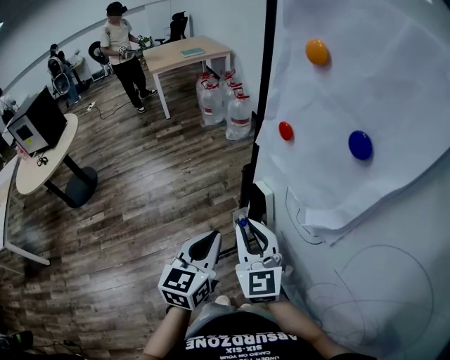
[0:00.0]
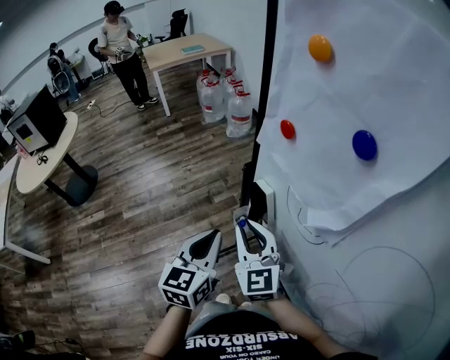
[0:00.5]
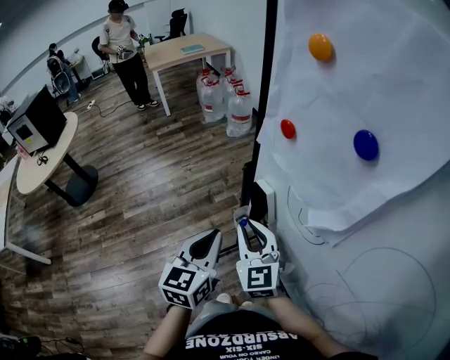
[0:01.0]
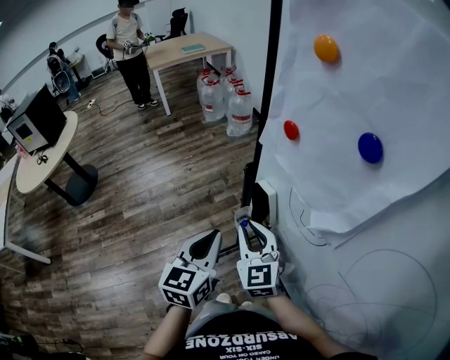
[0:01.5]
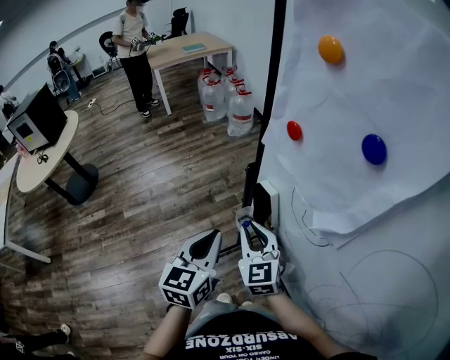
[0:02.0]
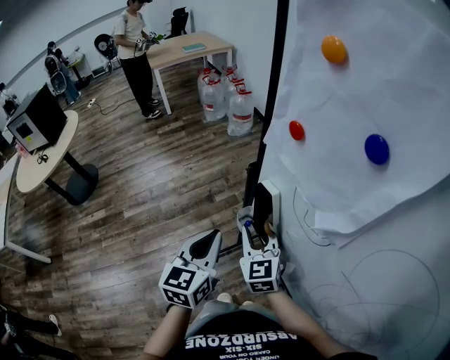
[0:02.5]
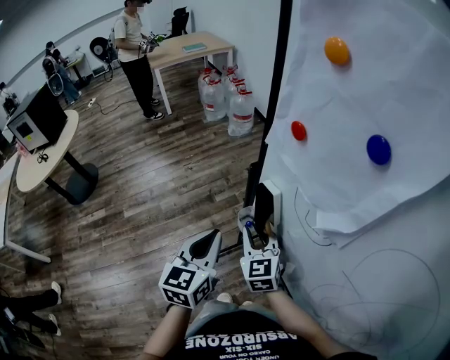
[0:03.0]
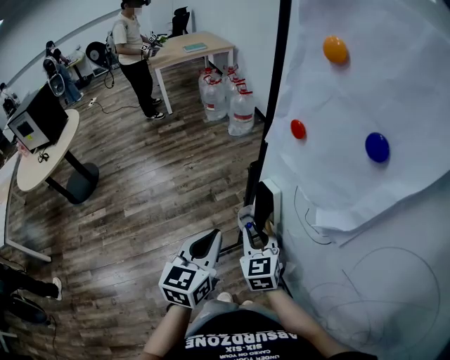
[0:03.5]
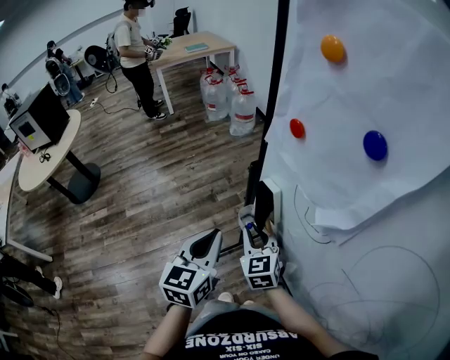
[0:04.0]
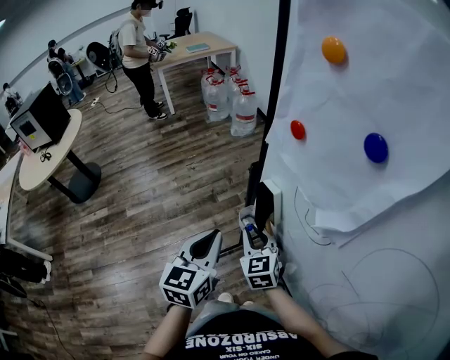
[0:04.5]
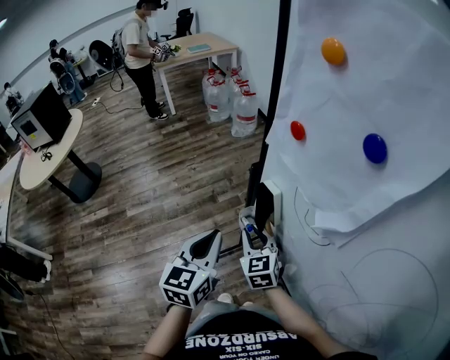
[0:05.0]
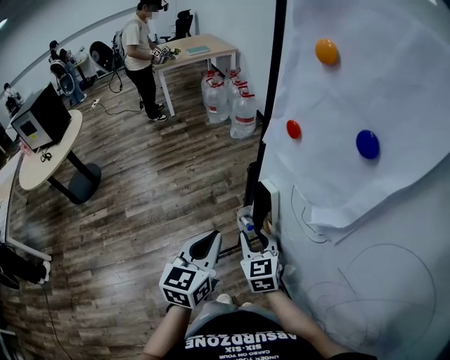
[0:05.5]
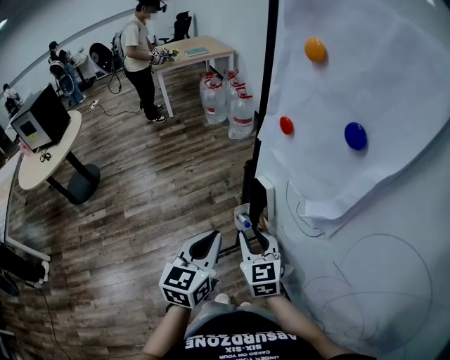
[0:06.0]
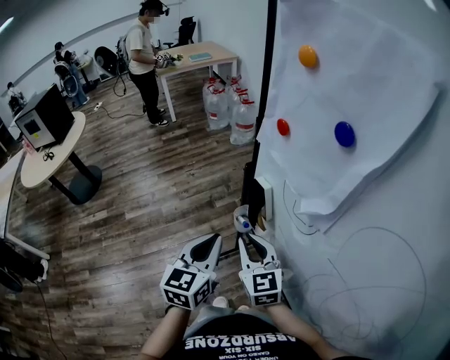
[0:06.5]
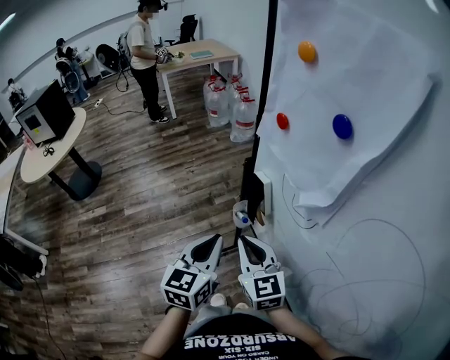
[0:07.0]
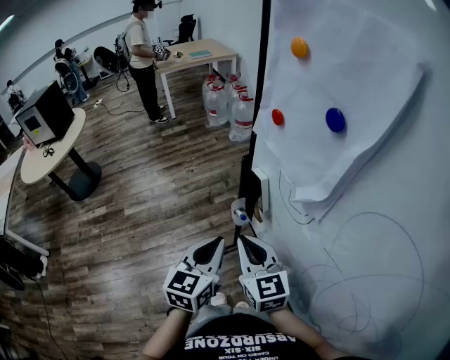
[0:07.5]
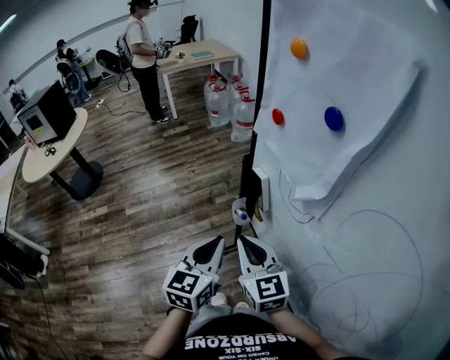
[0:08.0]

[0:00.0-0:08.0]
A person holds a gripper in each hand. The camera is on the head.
0:00.0 to 0:02.0: The right gripper heads downward, covering approximately 10 cm.
0:02.0 to 0:06.0: The grippers make only small movements.
0:06.0 to 0:08.0: The right gripper heads backward and upward, covering approximately 10 cm, and closes its fingers; the left gripper shifts by approximately 5 cm.

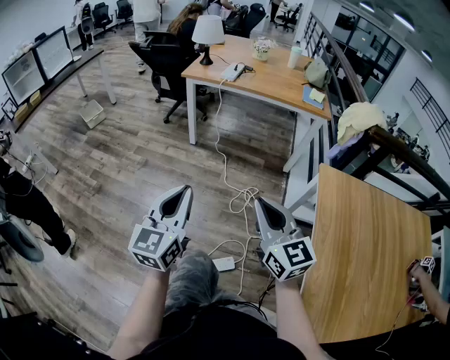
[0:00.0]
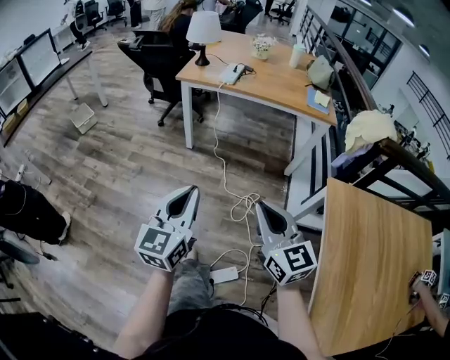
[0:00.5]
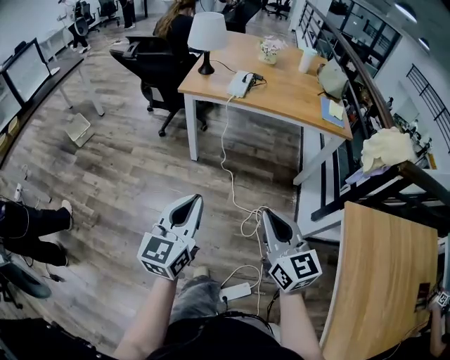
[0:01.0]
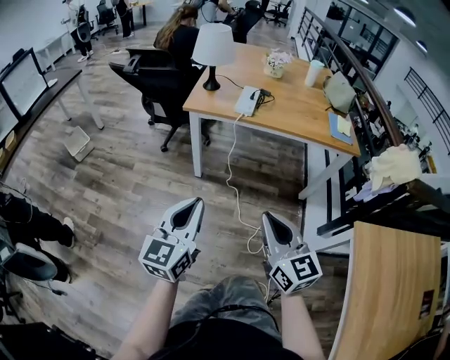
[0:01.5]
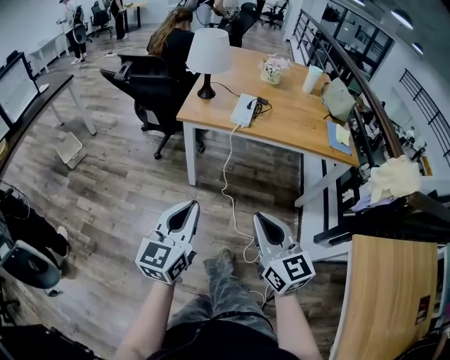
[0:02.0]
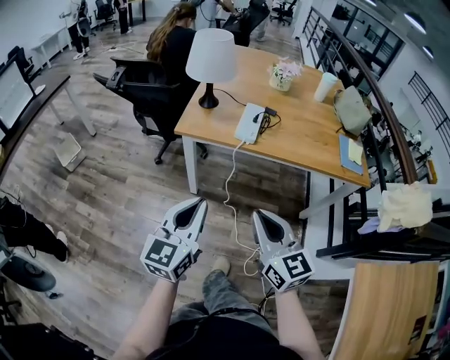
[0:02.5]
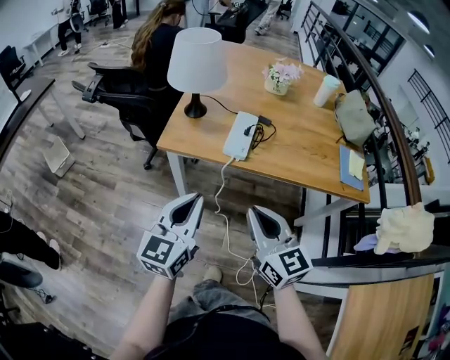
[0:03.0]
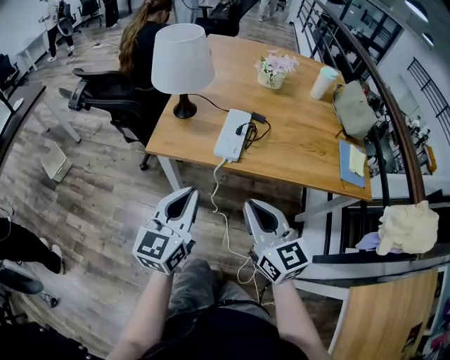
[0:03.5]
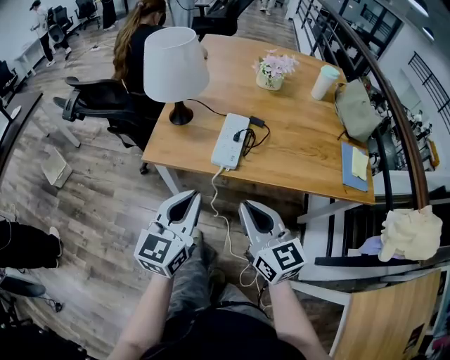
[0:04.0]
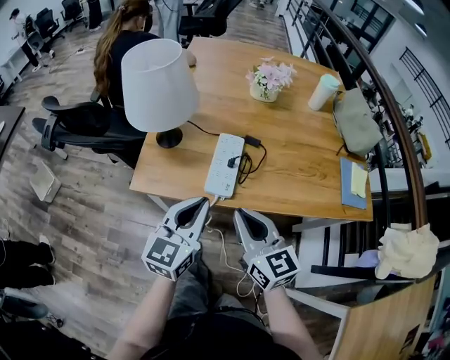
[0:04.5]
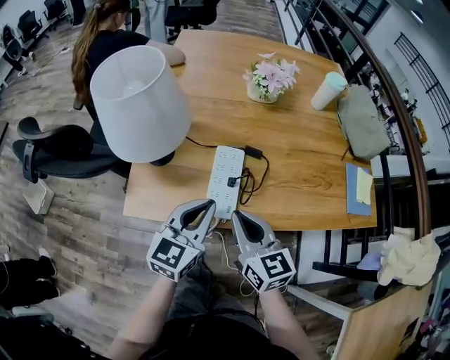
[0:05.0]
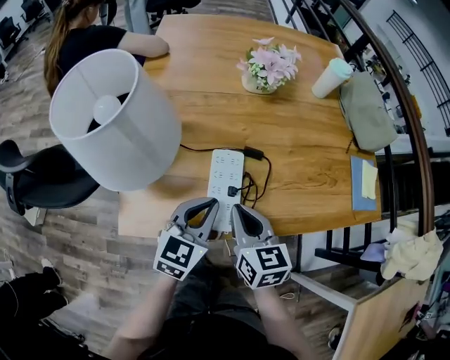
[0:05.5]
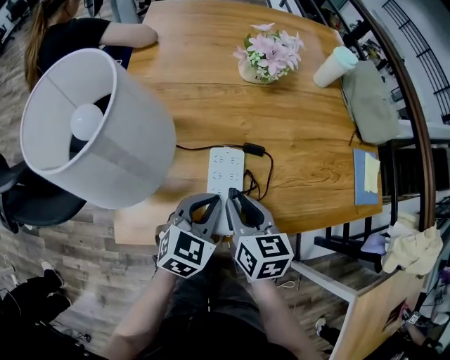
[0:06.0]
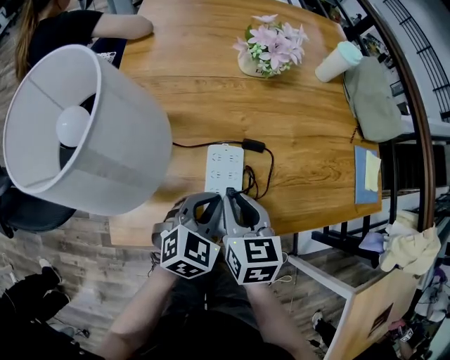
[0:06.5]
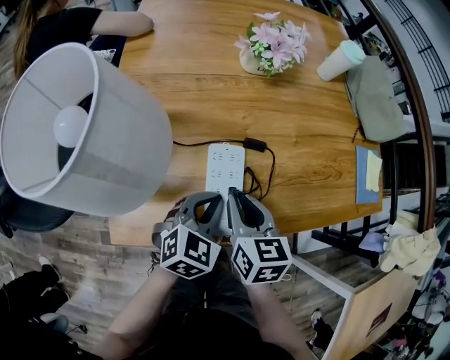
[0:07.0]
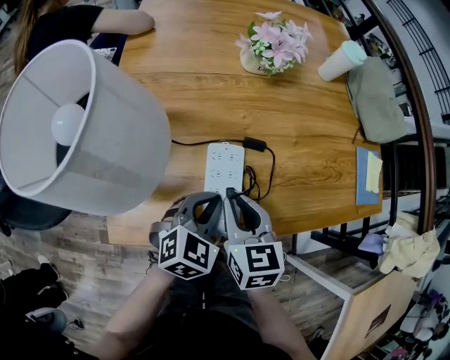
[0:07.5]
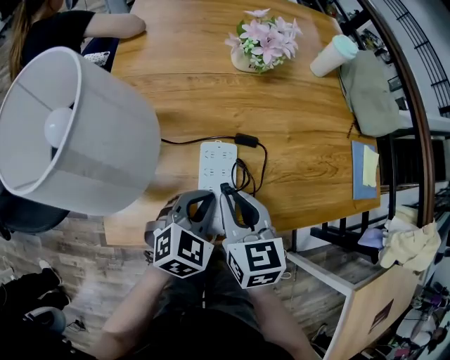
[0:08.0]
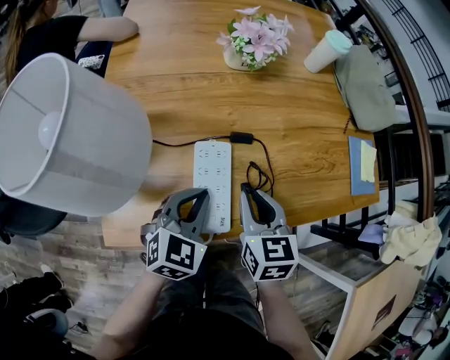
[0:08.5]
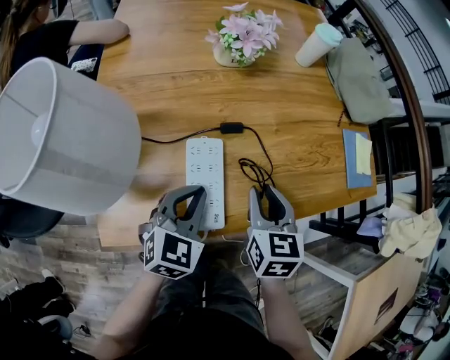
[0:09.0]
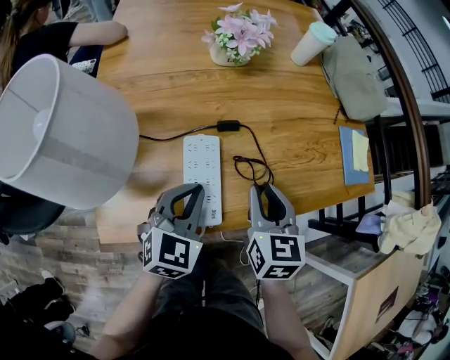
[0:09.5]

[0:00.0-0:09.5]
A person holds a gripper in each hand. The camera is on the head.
0:00.0 to 0:02.0: The grippers both shift forward by approximately 40 cm.
0:02.0 to 0:04.0: The grippers both shift forward by roughly 30 cm.
0:04.0 to 0:05.5: Both grippers move forward and downward, about 25 cm. The right gripper swivels roughly 30 degrees; the left gripper turns by roughly 30 degrees.
0:05.5 to 0:07.5: The left gripper ends up roughly 5 cm from where it was, and rotates about 20 degrees.
0:07.5 to 0:09.5: The right gripper heads to the right, covering approximately 10 cm.

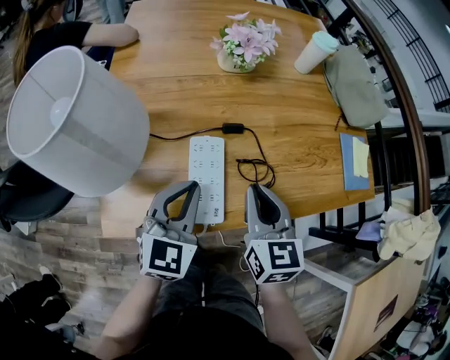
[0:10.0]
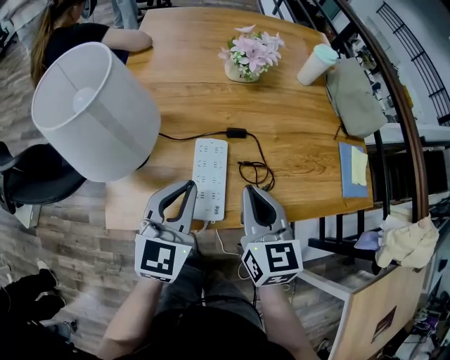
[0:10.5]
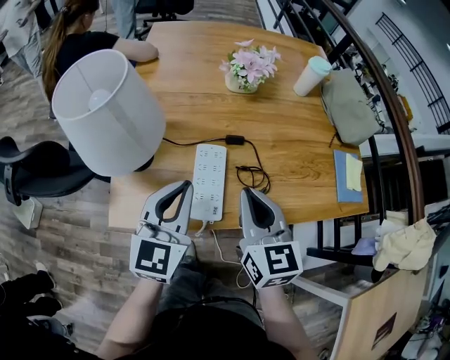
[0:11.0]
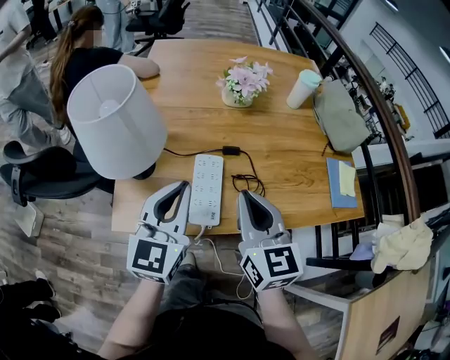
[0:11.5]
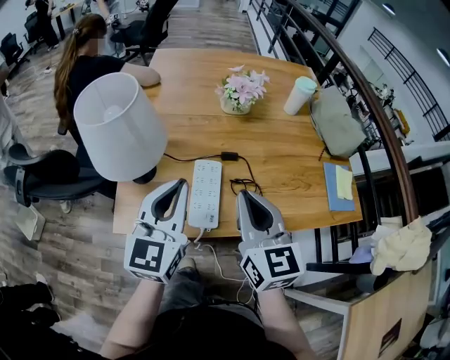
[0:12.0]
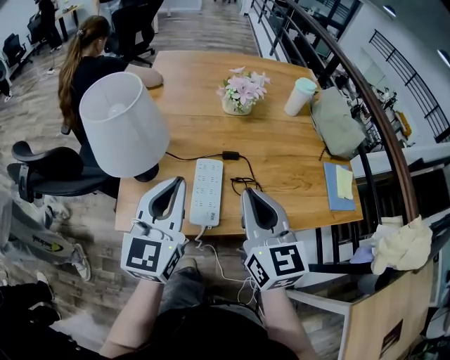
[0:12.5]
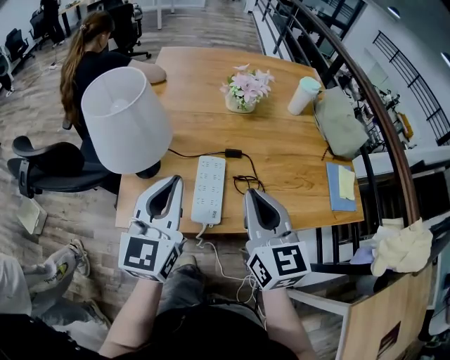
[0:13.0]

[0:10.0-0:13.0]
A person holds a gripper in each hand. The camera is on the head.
0:10.0 to 0:11.5: Both grippers move upward, about 10 cm. The left gripper swivels about 20 degrees.
0:11.5 to 0:13.0: There are only small adjustments of the grippers.

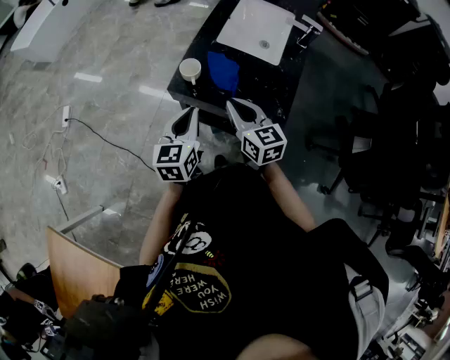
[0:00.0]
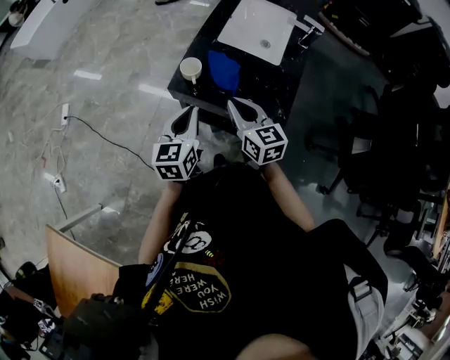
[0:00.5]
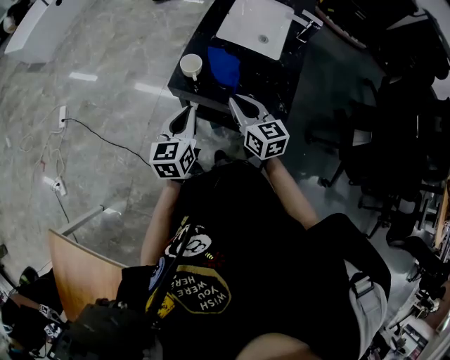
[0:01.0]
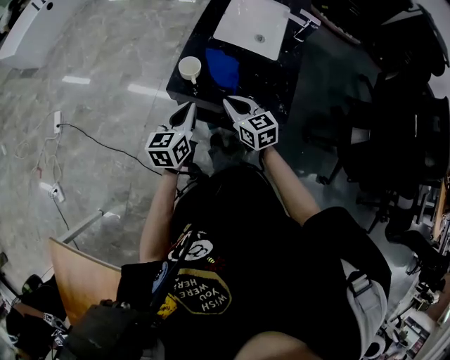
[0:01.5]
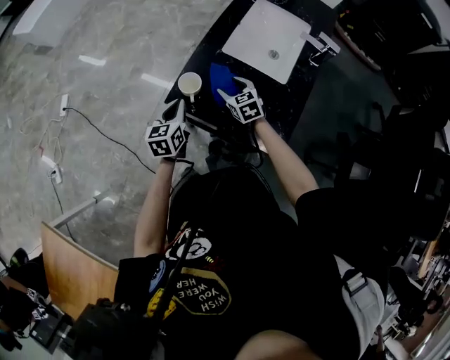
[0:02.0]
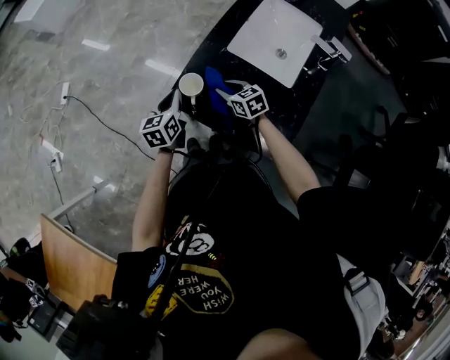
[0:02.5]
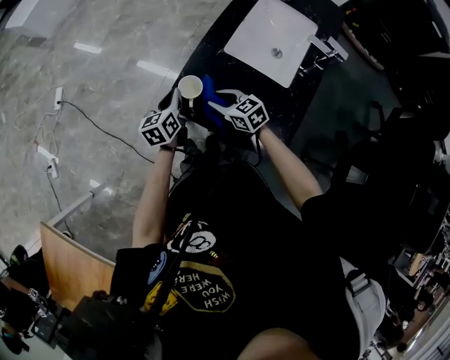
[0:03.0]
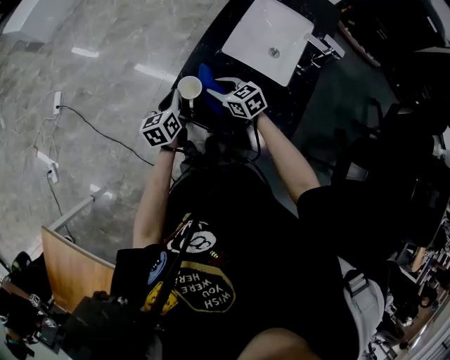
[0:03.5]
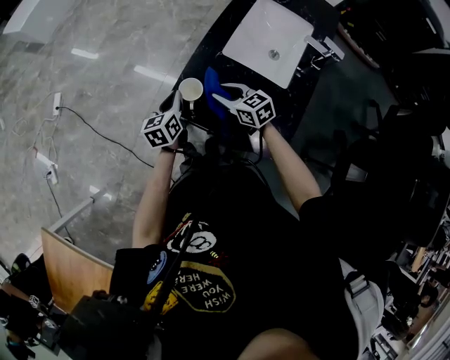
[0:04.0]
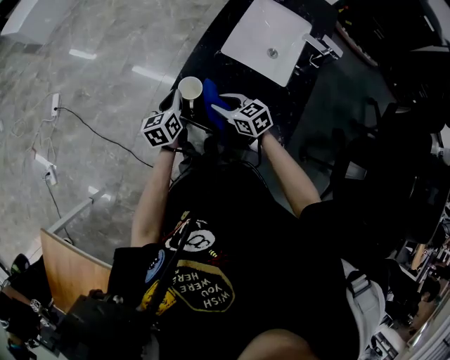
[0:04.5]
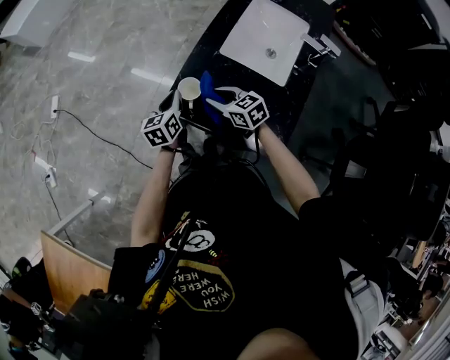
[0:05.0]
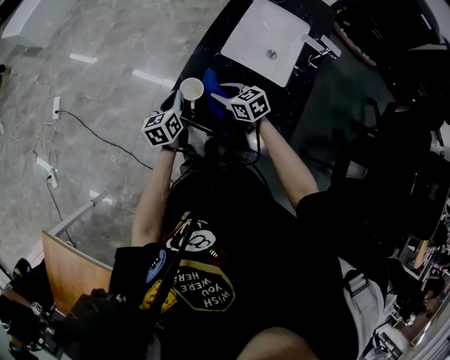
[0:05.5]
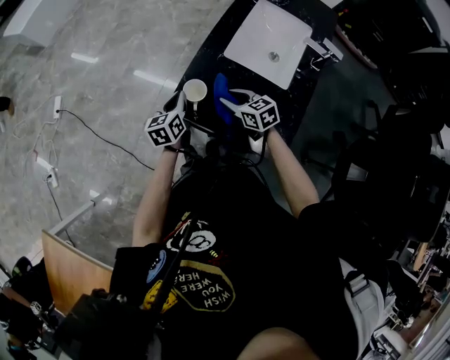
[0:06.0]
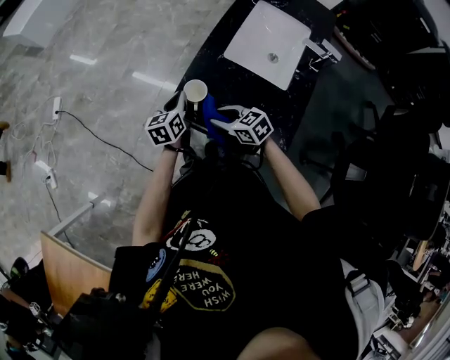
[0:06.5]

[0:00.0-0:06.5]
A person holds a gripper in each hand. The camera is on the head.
0:00.0 to 0:02.0: The grippers both shift forward and downward by about 20 cm. The right gripper changes its angle by about 30 degrees, and opens up.
0:02.0 to 0:04.5: The left gripper is displaced forward by roughly 5 cm. Meanwhile the right gripper shifts approximately 5 cm to the left, changes its angle by about 20 degrees, and closes its fingers.
